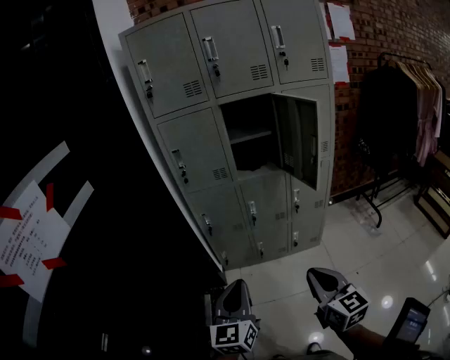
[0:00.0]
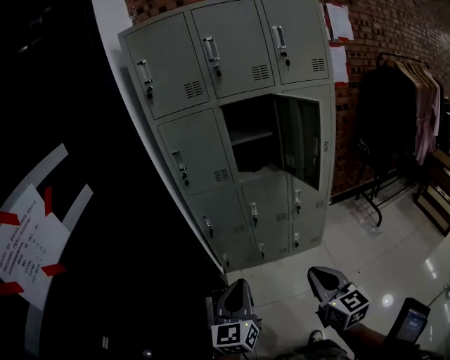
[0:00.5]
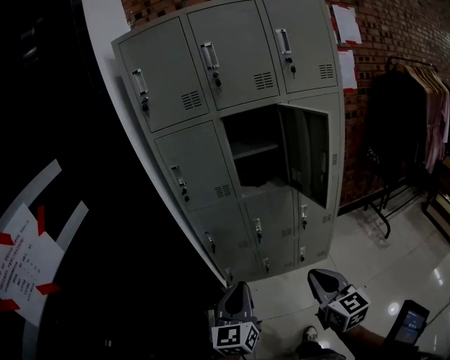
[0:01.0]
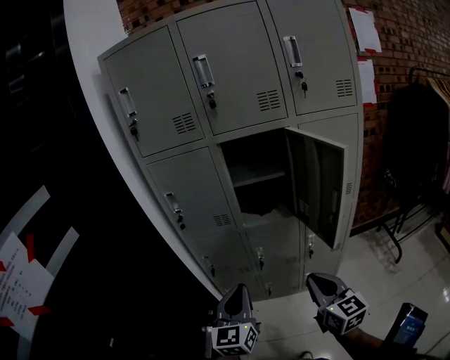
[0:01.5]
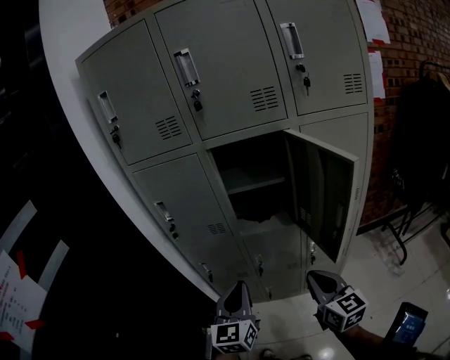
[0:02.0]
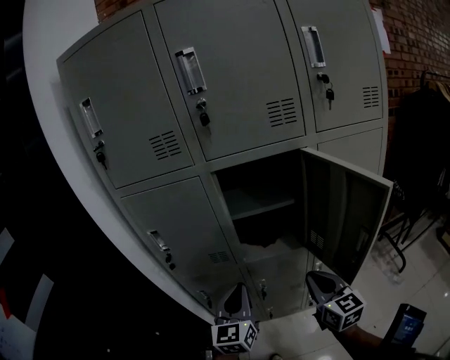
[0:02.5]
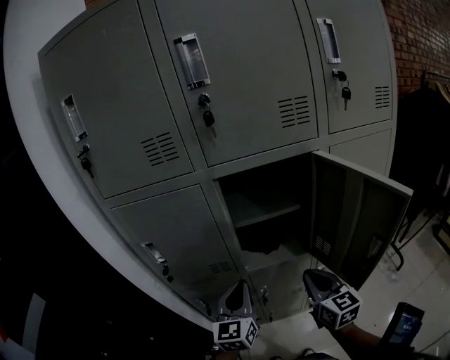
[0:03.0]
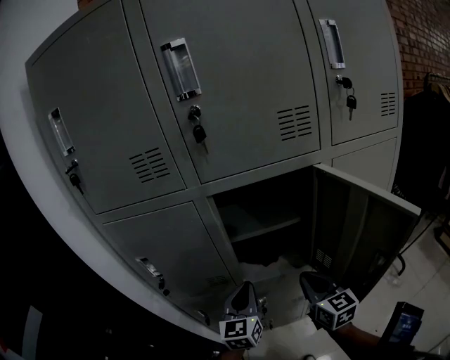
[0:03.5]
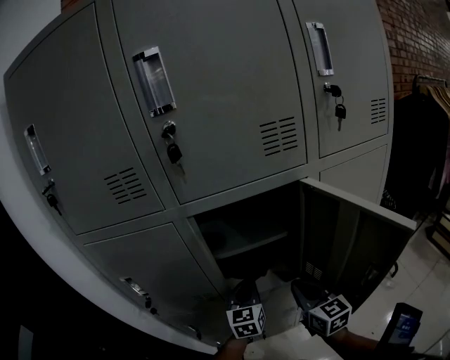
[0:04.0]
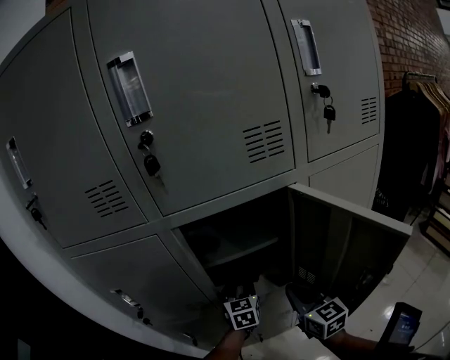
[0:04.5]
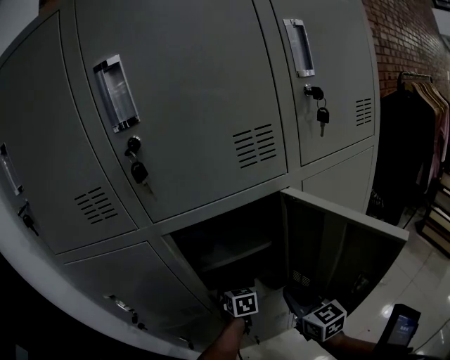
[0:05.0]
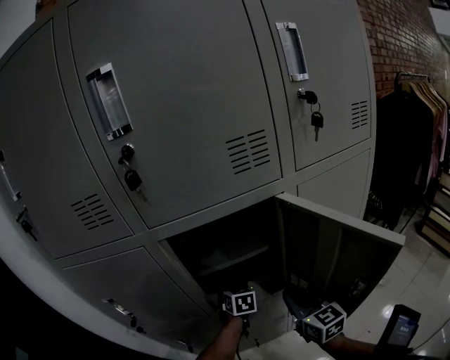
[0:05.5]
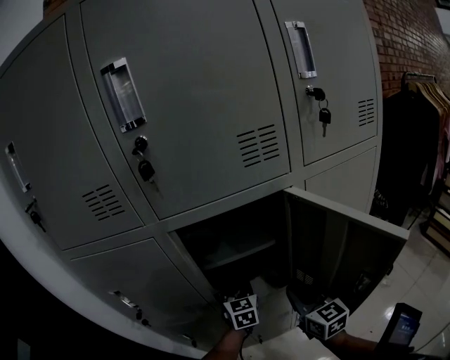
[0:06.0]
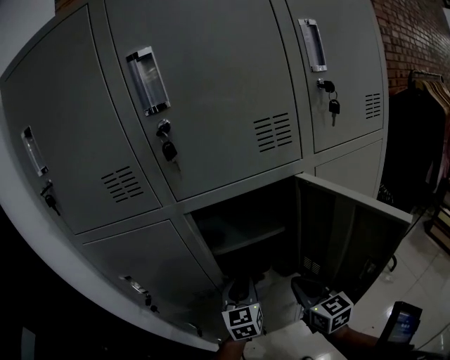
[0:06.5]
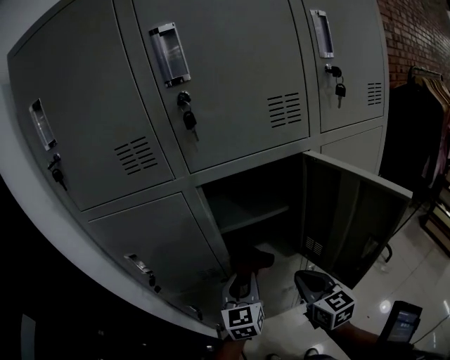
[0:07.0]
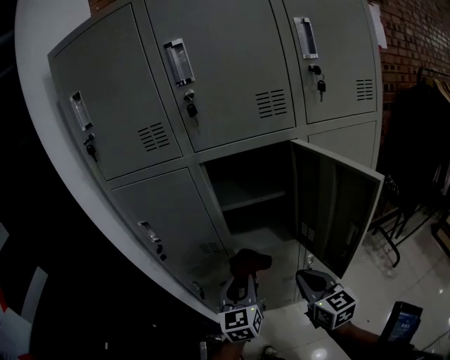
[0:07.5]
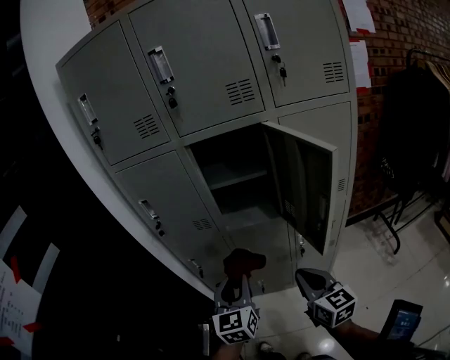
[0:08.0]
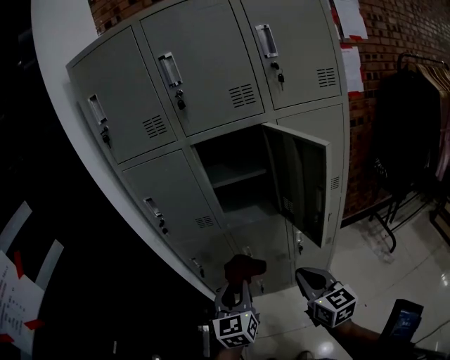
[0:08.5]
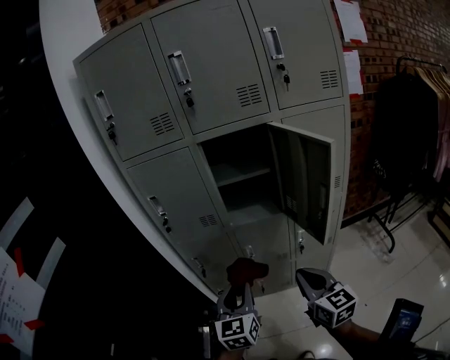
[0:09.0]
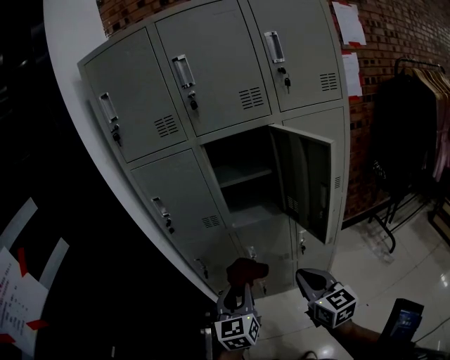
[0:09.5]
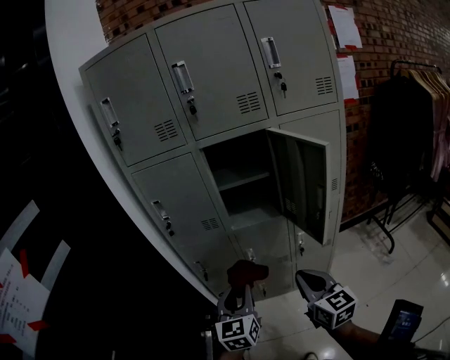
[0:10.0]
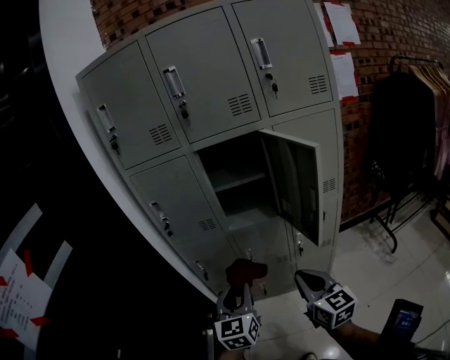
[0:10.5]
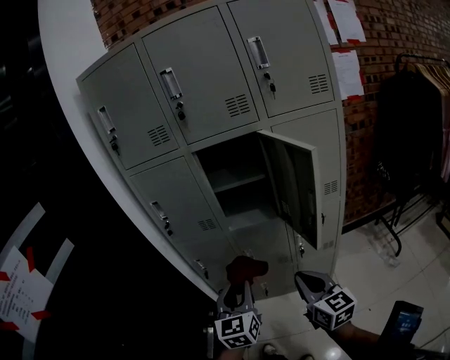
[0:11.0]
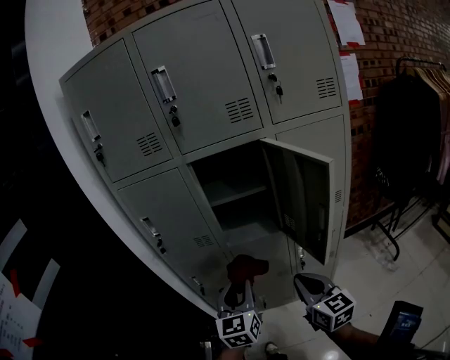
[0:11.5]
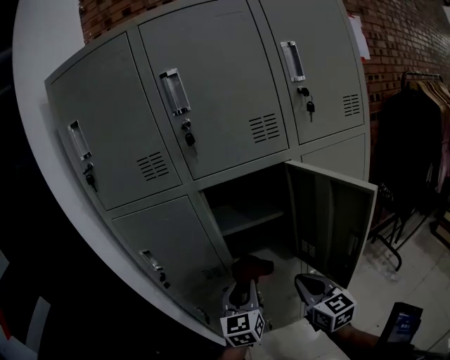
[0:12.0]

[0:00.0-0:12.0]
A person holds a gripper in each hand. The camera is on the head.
0:00.0 to 0:02.0: Both grippers travel together forward, approximately 30 cm.
0:02.0 to 0:04.0: Both grippers move forward, approximately 30 cm.
0:04.0 to 0:06.0: The left gripper heads forward, covering approximately 5 cm, and opens and closes again.
0:06.0 to 0:08.0: Both grippers move backward, roughly 30 cm.
0:08.0 to 0:10.0: Both grippers travel together backward, about 5 cm.
0:10.0 to 0:12.0: Both grippers travel together forward, some 20 cm.

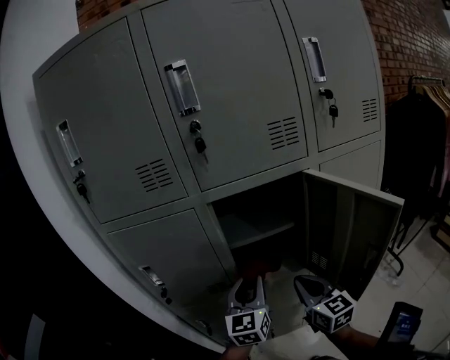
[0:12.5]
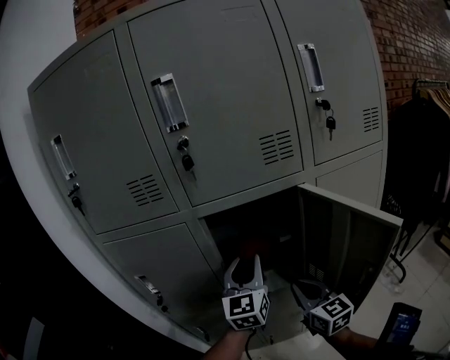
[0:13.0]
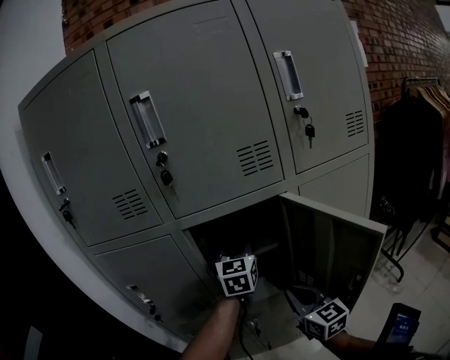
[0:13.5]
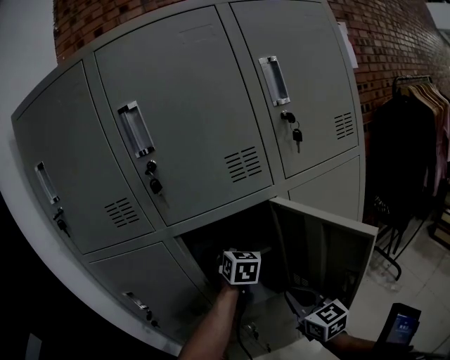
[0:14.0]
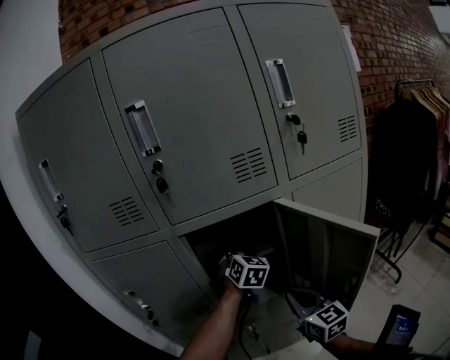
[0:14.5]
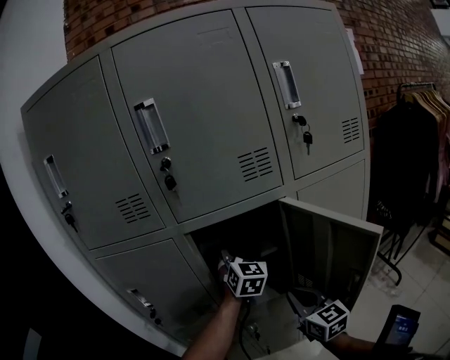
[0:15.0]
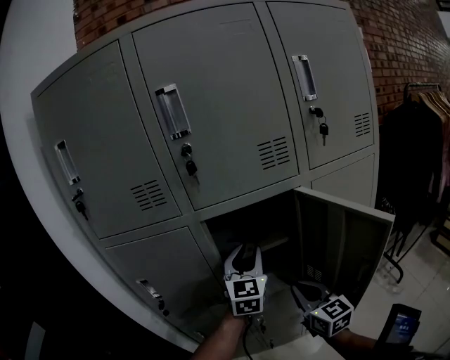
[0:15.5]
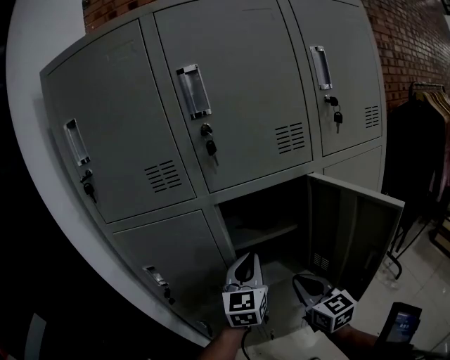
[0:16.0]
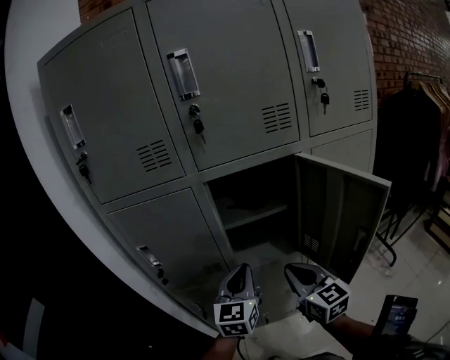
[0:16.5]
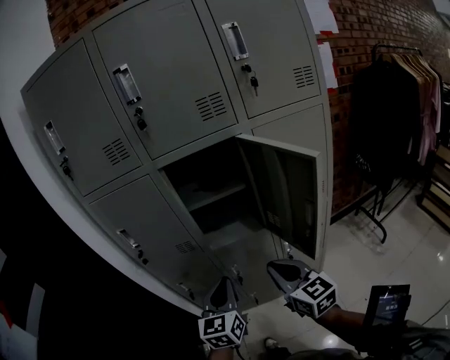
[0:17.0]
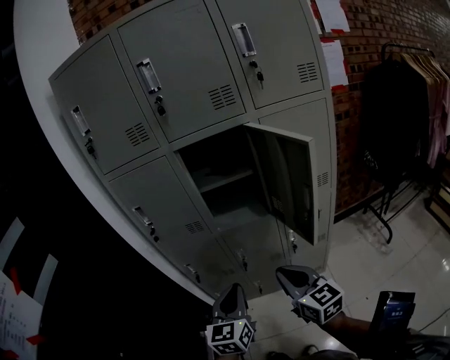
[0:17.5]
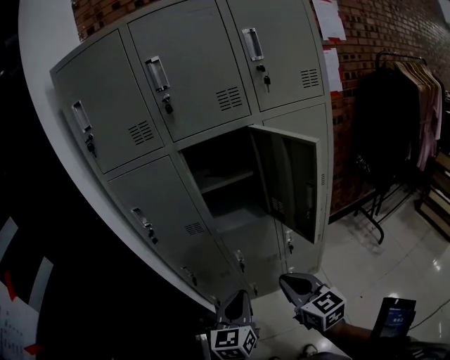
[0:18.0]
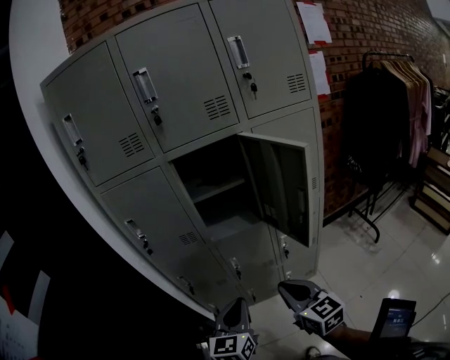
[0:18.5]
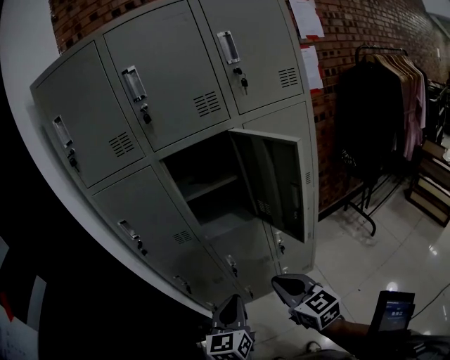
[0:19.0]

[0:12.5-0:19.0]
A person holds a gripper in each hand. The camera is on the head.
0:12.5 to 0:14.5: The left gripper travels forward and to the right by roughly 20 cm, and turns by roughly 40 degrees, while the right gripper ends up about 5 cm from where it was.
0:14.5 to 0:17.0: The left gripper travels backward by some 35 cm, changes its angle by some 40 degrees, and closes its fingers, while the right gripper shifts roughly 15 cm backward.
0:17.0 to 0:19.0: Both grippers travel together backward, about 10 cm.

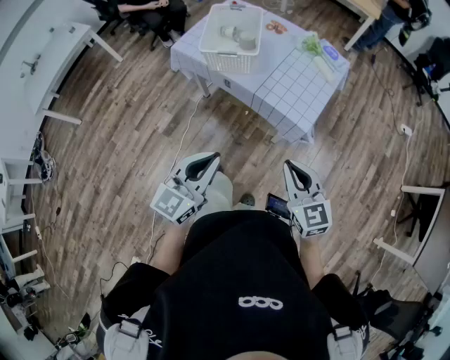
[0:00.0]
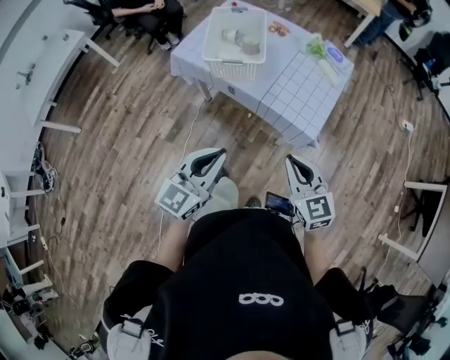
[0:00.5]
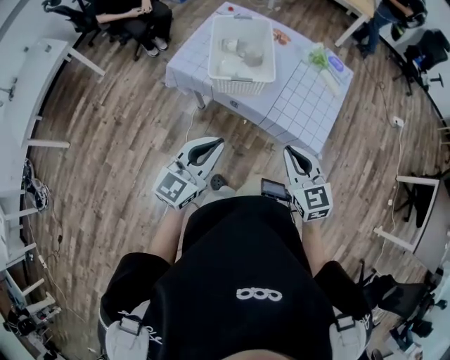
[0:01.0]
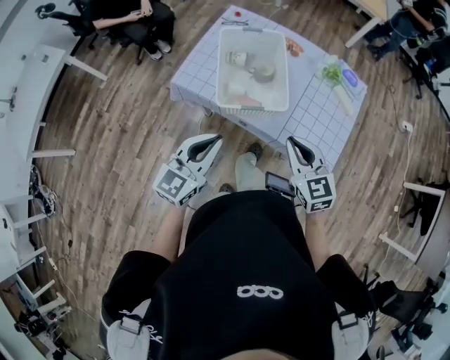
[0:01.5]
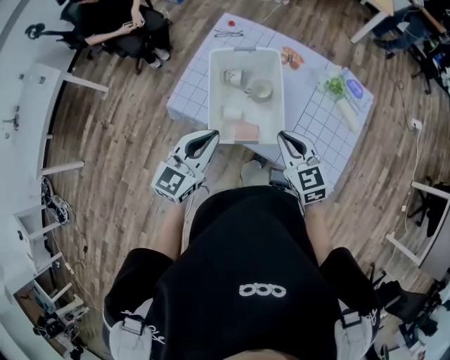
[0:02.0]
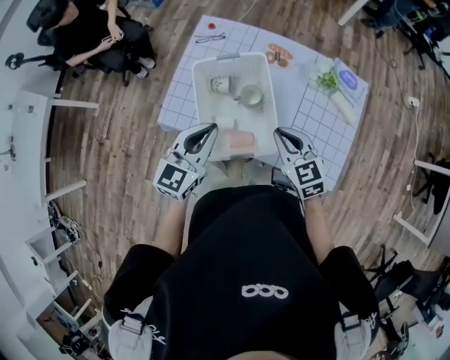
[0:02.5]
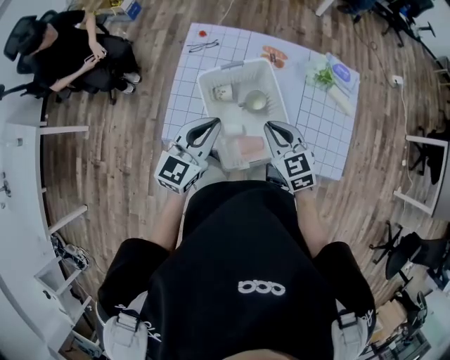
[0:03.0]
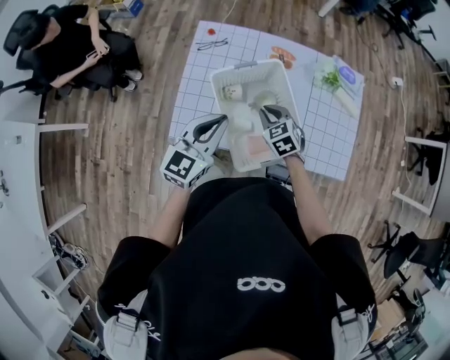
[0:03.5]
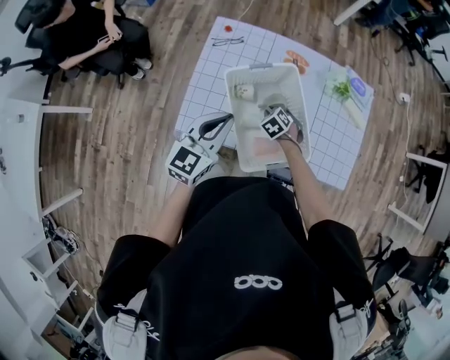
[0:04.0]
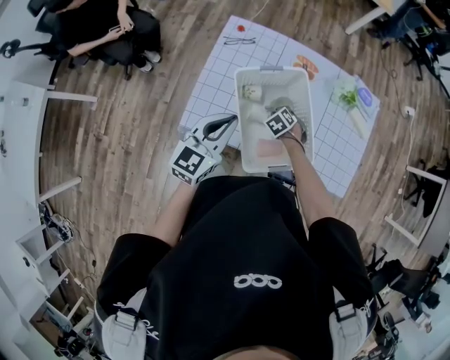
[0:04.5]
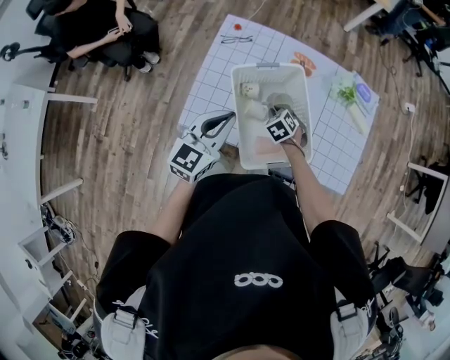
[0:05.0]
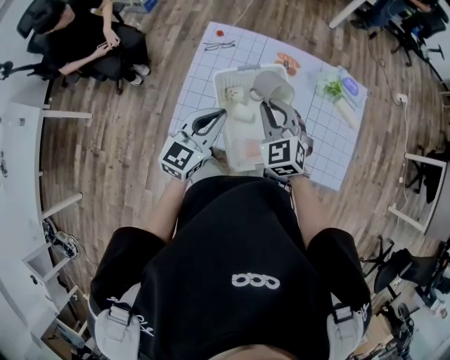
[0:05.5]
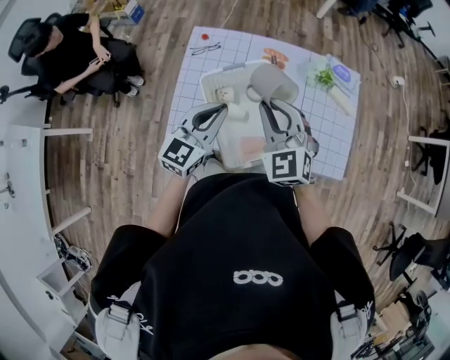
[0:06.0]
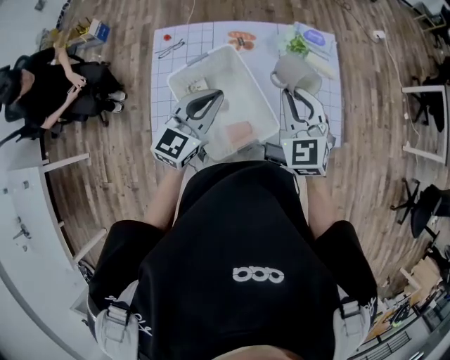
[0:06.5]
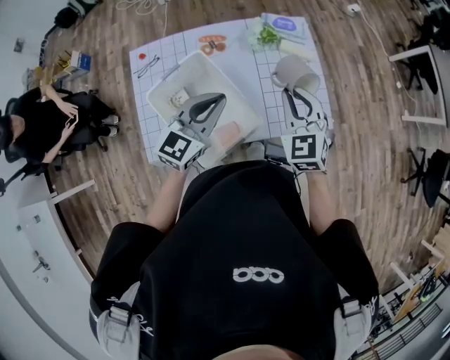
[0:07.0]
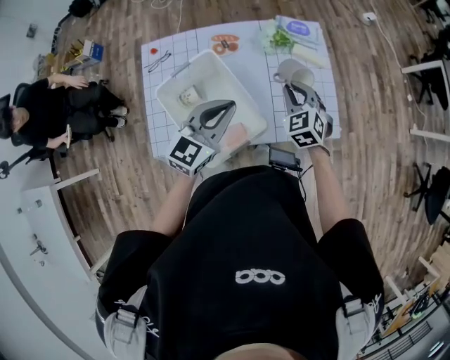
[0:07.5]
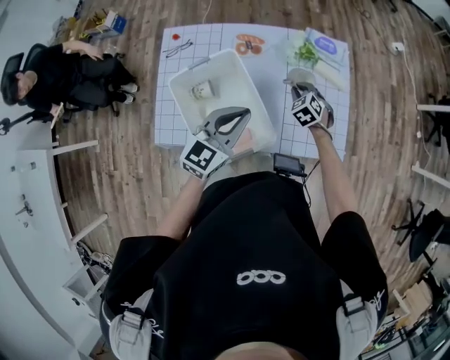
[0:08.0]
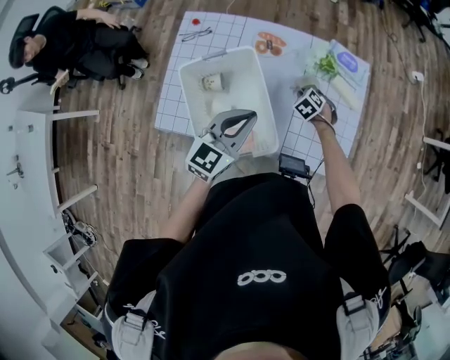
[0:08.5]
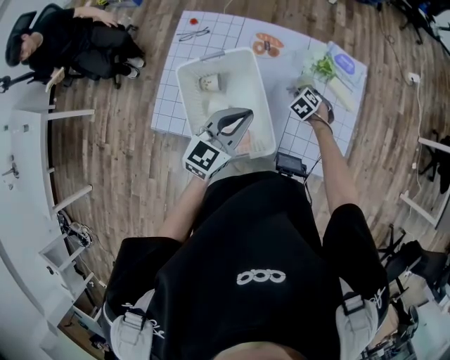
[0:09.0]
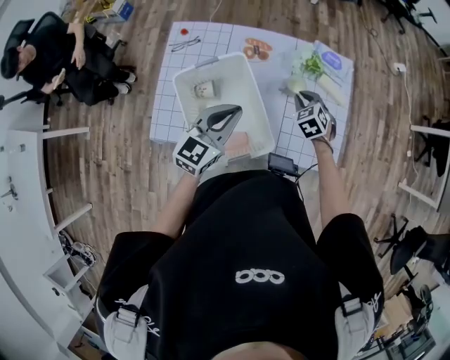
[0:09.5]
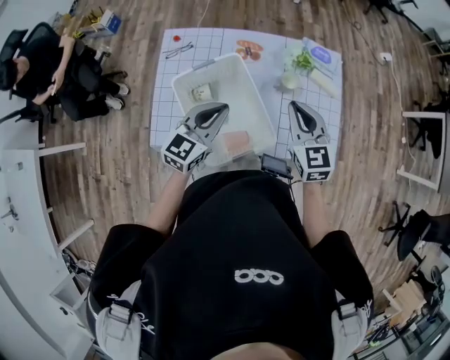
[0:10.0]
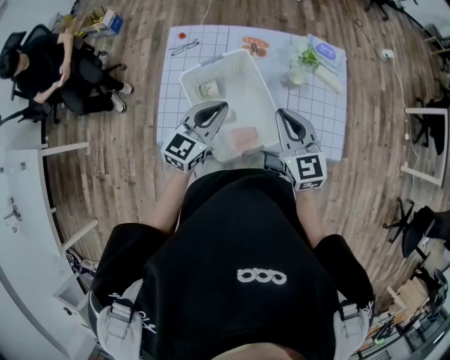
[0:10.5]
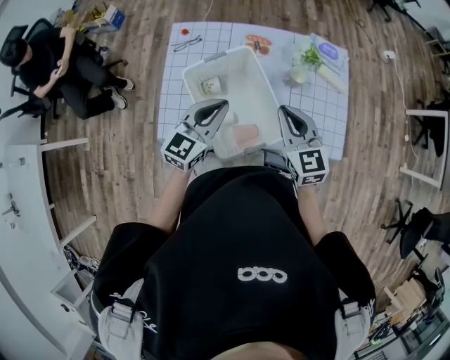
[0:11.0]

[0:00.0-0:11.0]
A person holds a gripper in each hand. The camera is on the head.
0:00.0 to 0:02.0: The pair of grippers is taken forward, roughly 50 cm.
0:02.0 to 0:03.5: The right gripper heads forward, downward and to the left, covering about 20 cm, and changes its angle by roughly 30 degrees; the left gripper is displaced forward and to the left by some 15 cm.
0:03.5 to 0:05.5: The right gripper travels upward by approximately 15 cm, and swivels roughly 30 degrees.
0:05.5 to 0:07.5: The left gripper shifts by some 20 cm, and swivels approximately 20 degrees. The right gripper changes place by roughly 25 cm, and swivels approximately 30 degrees.
0:07.5 to 0:09.0: The left gripper shifts some 5 cm downward, and turns by some 20 degrees. The right gripper moves downward and forward, roughly 25 cm, and points its fingers about 40 degrees further downward.
0:09.0 to 0:11.0: The left gripper is displaced to the left by some 10 cm. Meanwhile the right gripper shifts roughly 35 cm upward and backward, and angles its fingers upward, by some 50 degrees.
